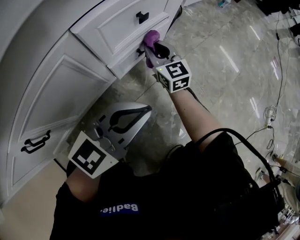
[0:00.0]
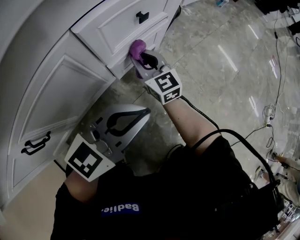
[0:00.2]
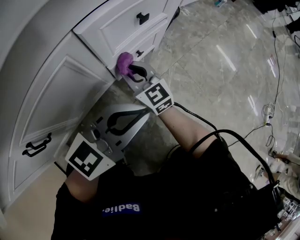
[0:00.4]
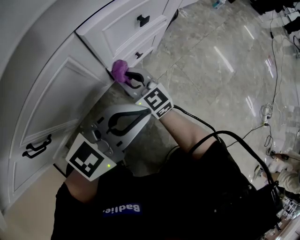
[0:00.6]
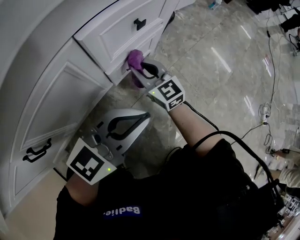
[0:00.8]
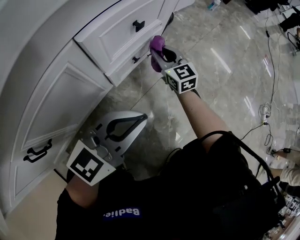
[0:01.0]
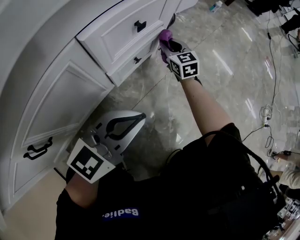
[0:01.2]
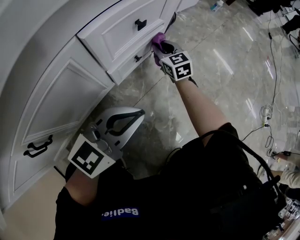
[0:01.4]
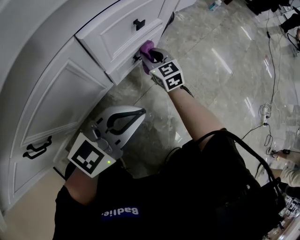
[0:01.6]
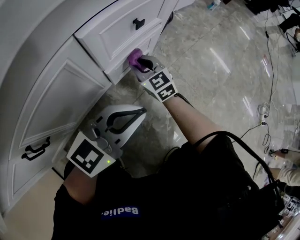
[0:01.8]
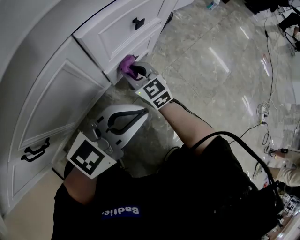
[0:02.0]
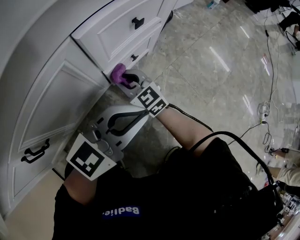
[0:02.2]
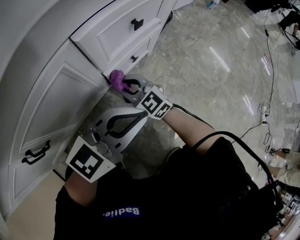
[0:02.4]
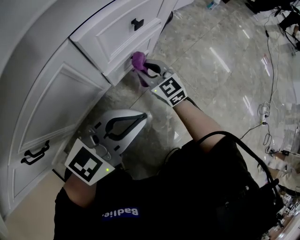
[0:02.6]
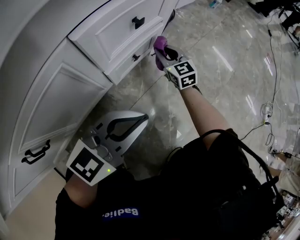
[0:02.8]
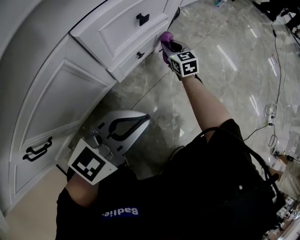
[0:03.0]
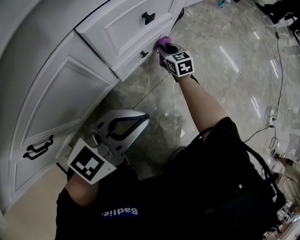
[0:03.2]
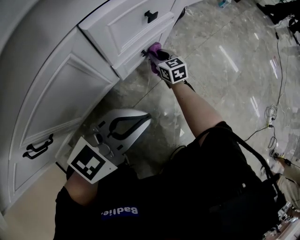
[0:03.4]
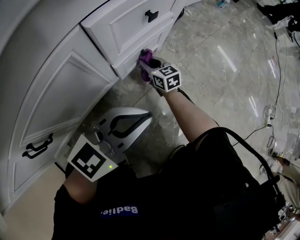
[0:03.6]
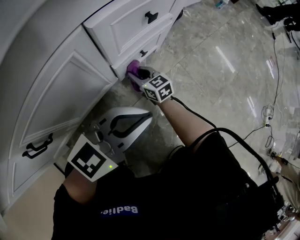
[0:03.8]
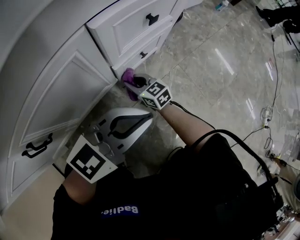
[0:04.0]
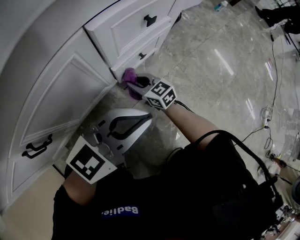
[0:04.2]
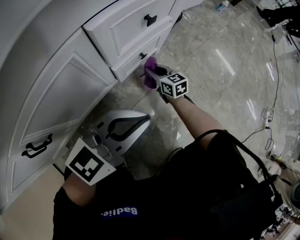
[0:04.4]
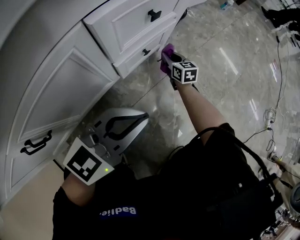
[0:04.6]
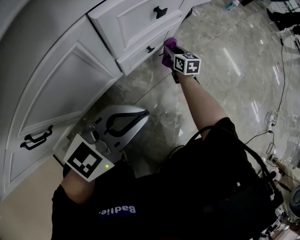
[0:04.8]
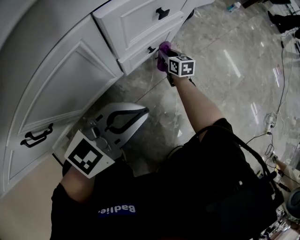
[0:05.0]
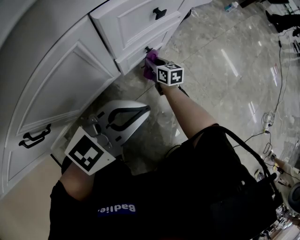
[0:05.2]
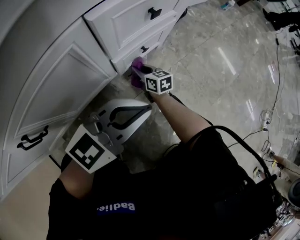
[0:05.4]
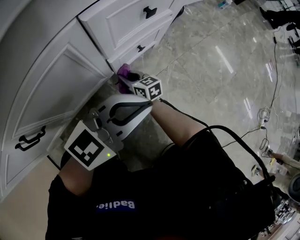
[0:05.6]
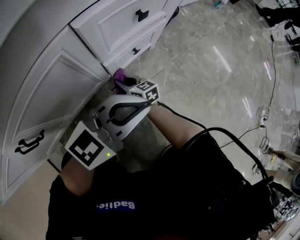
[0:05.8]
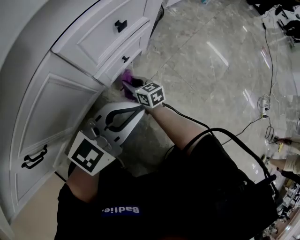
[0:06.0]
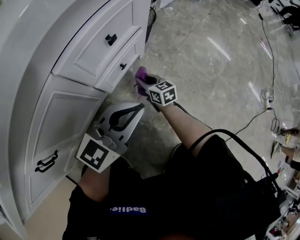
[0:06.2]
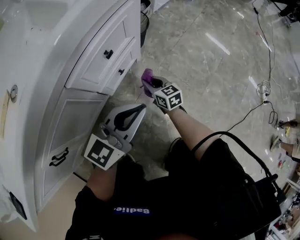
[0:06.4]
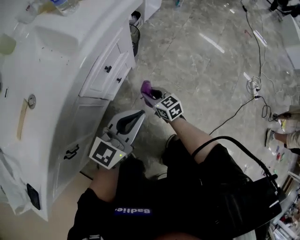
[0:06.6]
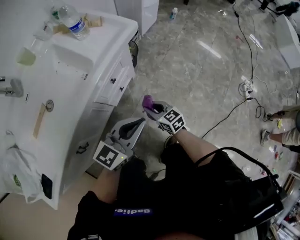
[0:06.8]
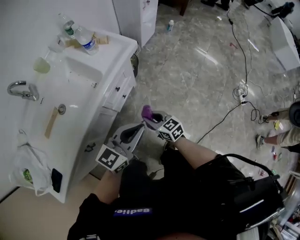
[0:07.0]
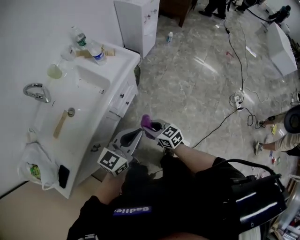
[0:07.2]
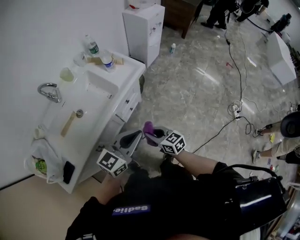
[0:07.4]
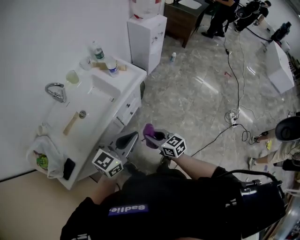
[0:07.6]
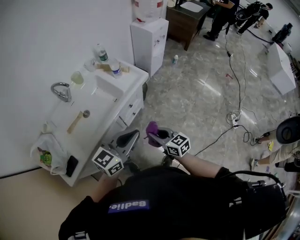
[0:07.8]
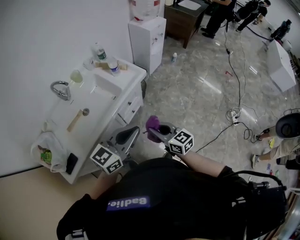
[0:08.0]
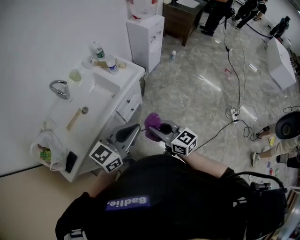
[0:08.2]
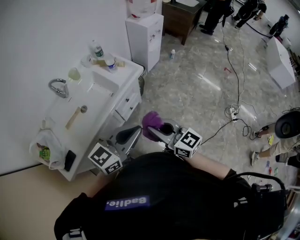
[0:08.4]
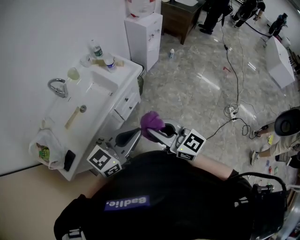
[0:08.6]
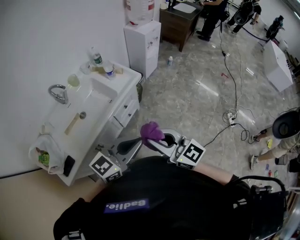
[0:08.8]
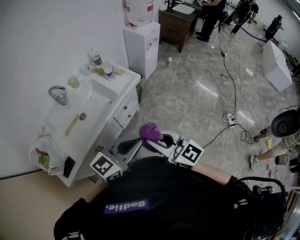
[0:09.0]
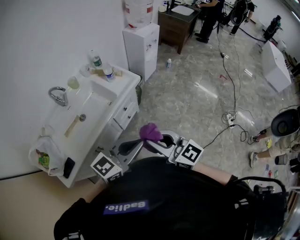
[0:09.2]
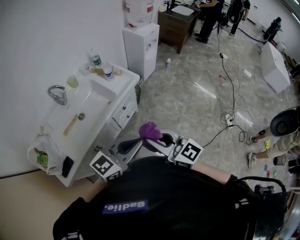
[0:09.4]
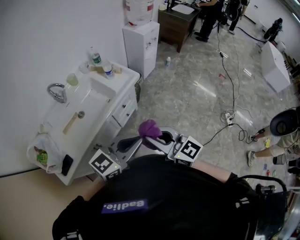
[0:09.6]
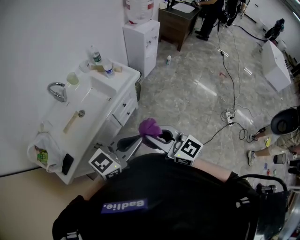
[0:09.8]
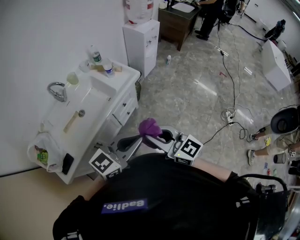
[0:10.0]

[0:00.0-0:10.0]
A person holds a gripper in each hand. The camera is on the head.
0:00.0 to 0:01.4: The right gripper travels backward and back again, roughly 10 cm each way.
0:01.4 to 0:02.8: The right gripper reaches roughly 20 cm backward, then returns.
0:02.8 to 0:04.2: The right gripper goes about 20 cm backward and to the left, and rotates some 30 degrees.
0:04.2 to 0:05.8: The right gripper moves about 20 cm forward and comes back.
0:05.8 to 0:07.2: Both grippers travel together upward, roughly 50 cm.
0:07.2 to 0:08.6: The right gripper travels upward by some 40 cm, and changes its angle by some 30 degrees. The left gripper heads upward and backward, covering approximately 25 cm.
0:08.6 to 0:10.0: There are only small adjustments of the grippers.

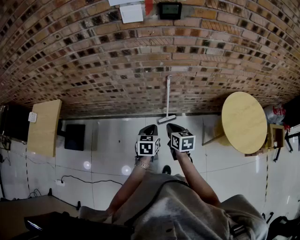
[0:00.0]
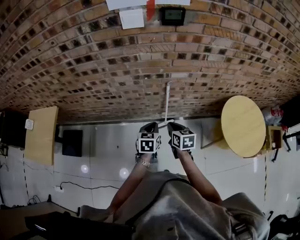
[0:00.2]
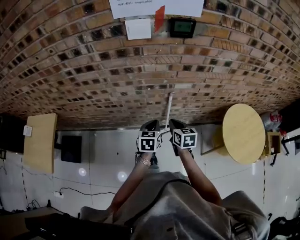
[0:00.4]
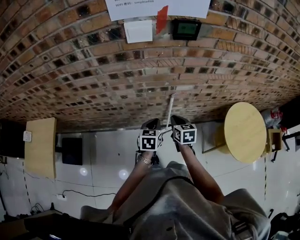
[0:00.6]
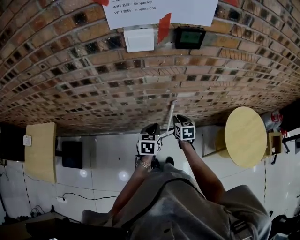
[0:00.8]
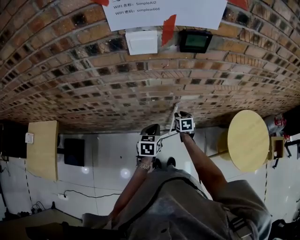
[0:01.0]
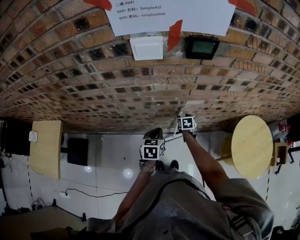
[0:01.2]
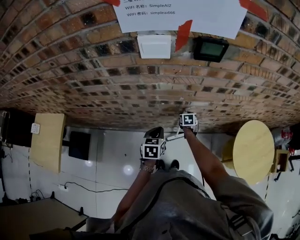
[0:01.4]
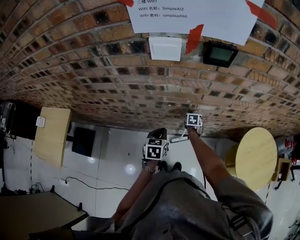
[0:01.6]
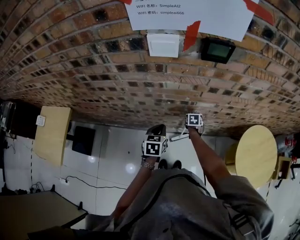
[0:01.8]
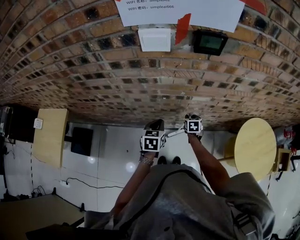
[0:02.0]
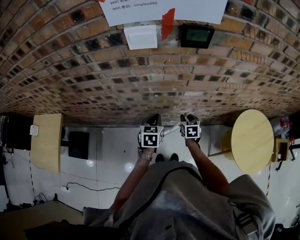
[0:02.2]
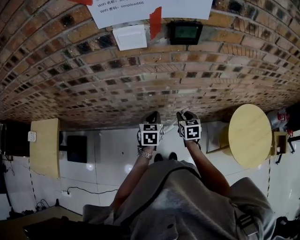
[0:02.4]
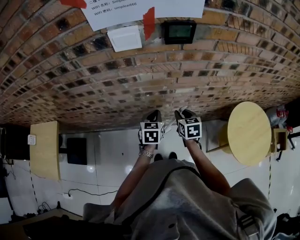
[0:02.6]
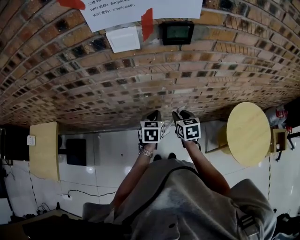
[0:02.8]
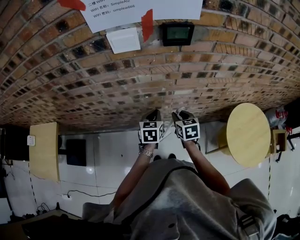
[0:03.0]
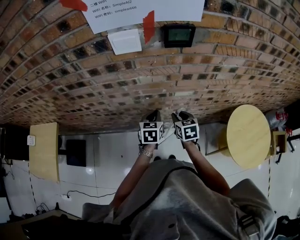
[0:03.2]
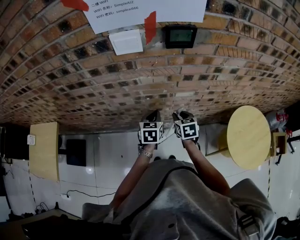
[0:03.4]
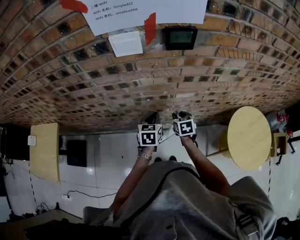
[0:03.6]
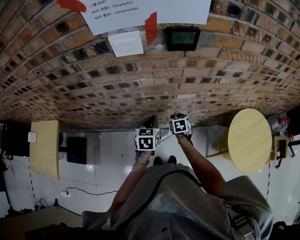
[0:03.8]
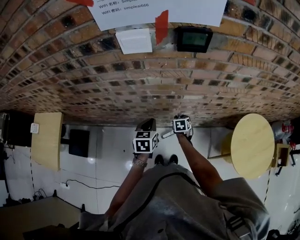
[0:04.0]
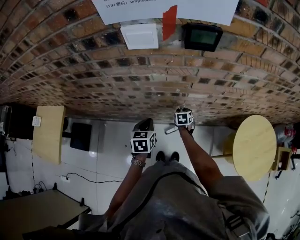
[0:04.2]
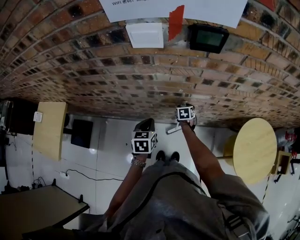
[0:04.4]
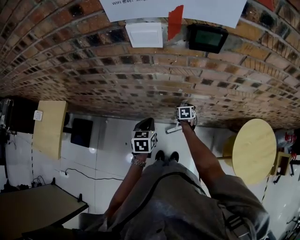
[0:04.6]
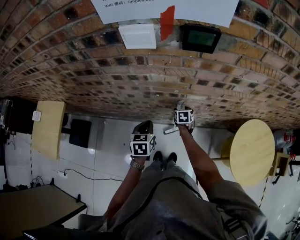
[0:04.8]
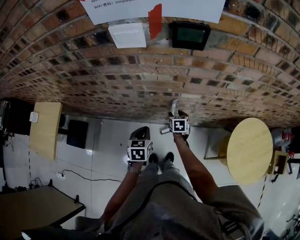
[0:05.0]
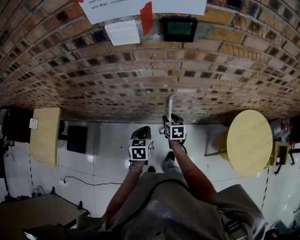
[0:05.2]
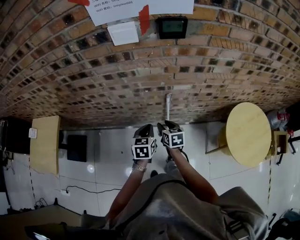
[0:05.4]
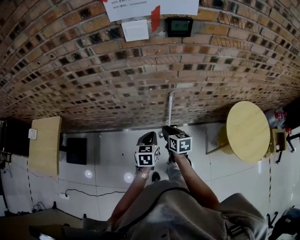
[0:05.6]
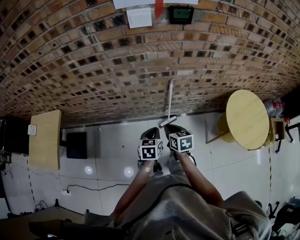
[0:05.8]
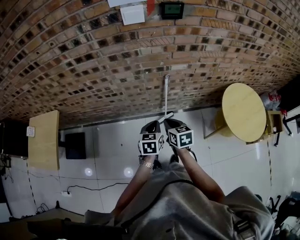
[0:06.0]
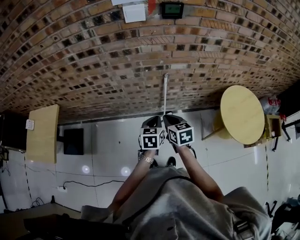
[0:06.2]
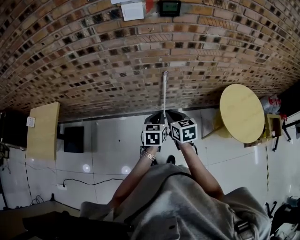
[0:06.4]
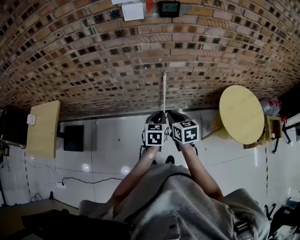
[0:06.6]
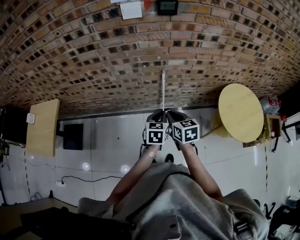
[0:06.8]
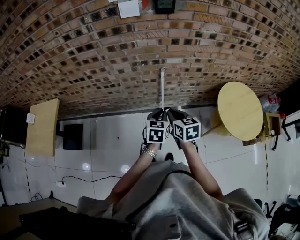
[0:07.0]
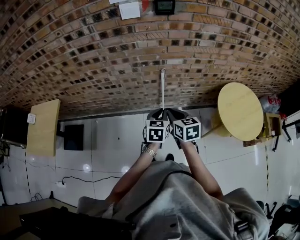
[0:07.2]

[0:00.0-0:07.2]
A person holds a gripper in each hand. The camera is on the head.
0:00.0 to 0:01.4: The right gripper is displaced forward and downward by some 40 cm, swivels about 20 degrees, and opens up, while the left gripper goes roughly 20 cm forward.
0:01.4 to 0:02.8: The right gripper goes approximately 25 cm upward and backward. Meanwhile the left gripper heads to the right, covering about 5 cm.
0:02.8 to 0:04.4: The left gripper moves to the left, some 10 cm. The right gripper heads downward and forward, covering about 25 cm.
0:04.4 to 0:05.8: The left gripper travels backward by approximately 20 cm, while the right gripper goes approximately 35 cm backward and upward, rotates roughly 20 degrees, and closes up.
0:05.8 to 0:07.2: The left gripper moves to the right, upward and backward, approximately 15 cm; the right gripper travels upward, backward and to the right by about 15 cm.

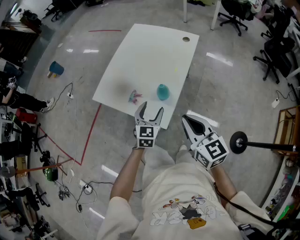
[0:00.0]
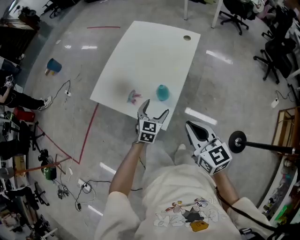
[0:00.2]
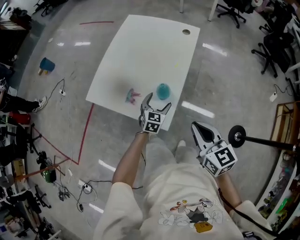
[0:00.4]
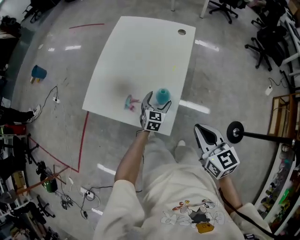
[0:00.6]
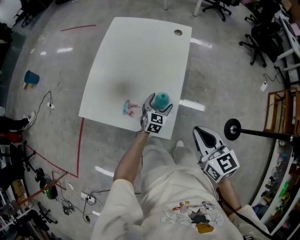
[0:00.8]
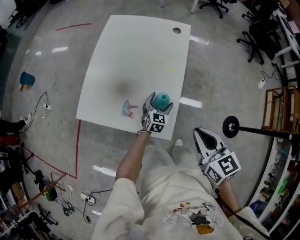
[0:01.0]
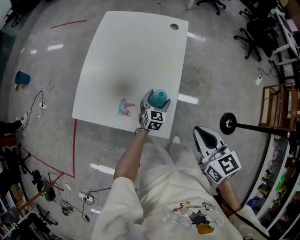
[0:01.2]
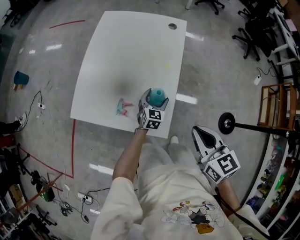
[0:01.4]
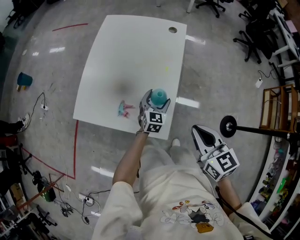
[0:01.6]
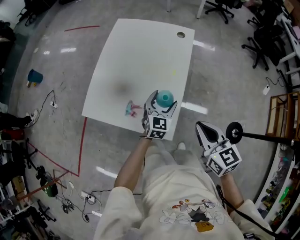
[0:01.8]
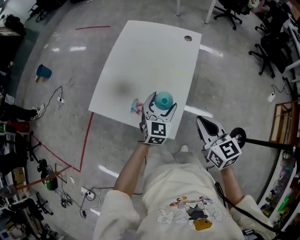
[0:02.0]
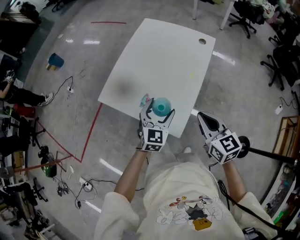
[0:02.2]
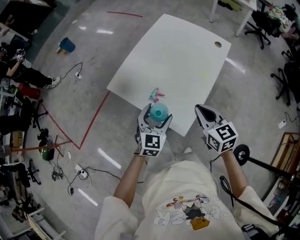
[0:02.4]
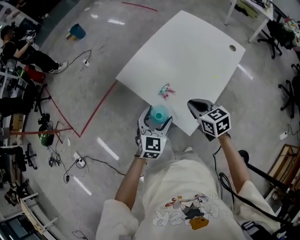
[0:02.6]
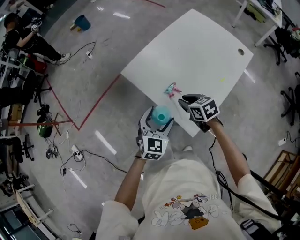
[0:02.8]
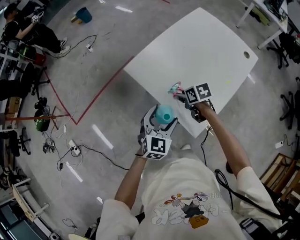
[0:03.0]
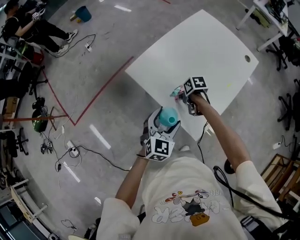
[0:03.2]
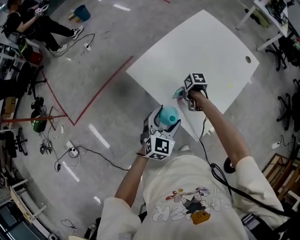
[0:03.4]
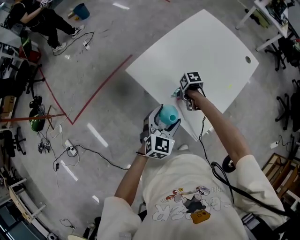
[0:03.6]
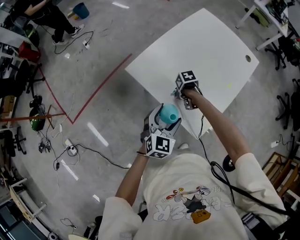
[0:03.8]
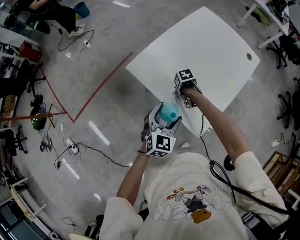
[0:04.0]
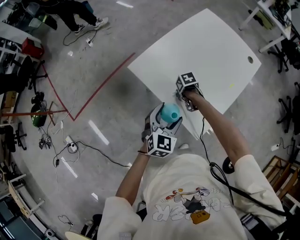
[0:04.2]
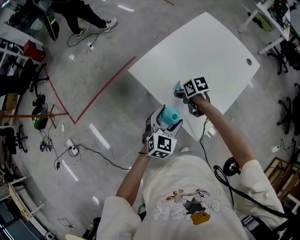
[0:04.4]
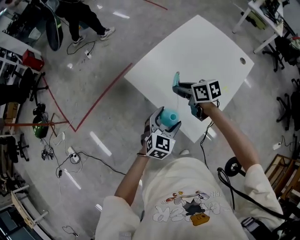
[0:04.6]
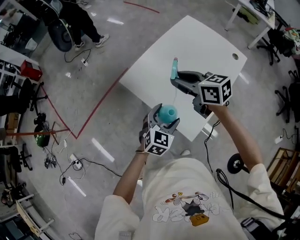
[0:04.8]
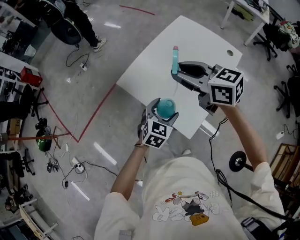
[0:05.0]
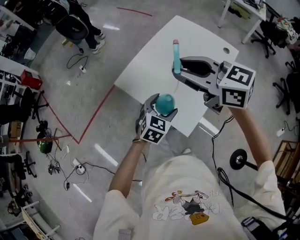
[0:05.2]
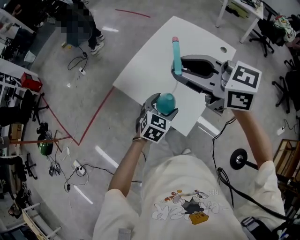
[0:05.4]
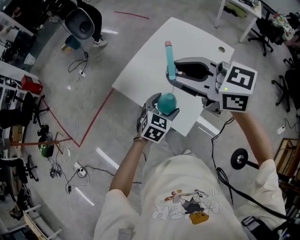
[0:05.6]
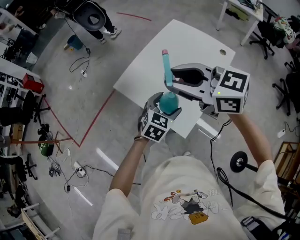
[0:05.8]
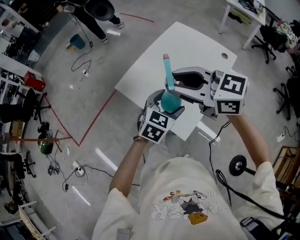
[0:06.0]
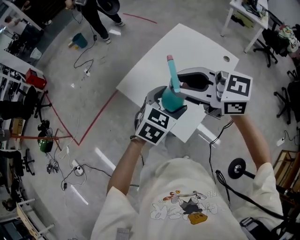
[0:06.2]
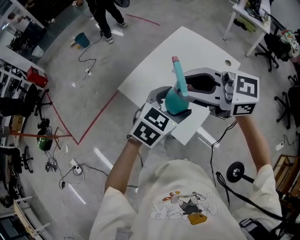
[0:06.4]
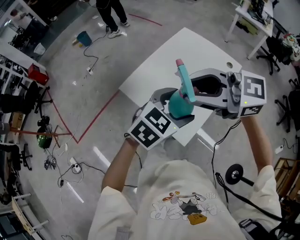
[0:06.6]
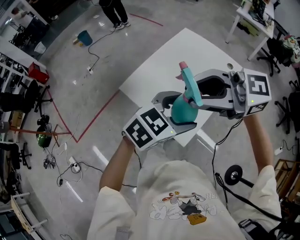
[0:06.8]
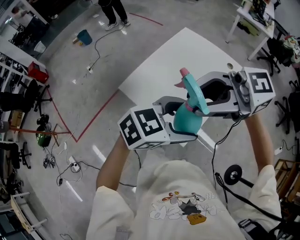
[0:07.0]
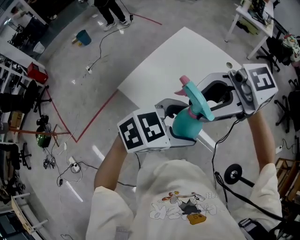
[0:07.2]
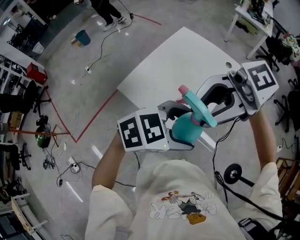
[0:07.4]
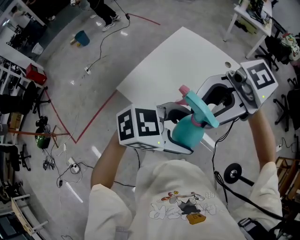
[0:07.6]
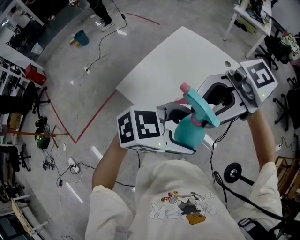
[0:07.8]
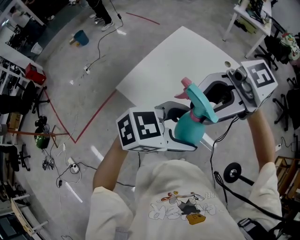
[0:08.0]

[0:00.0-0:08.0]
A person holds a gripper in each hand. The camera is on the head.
0:00.0 to 0:01.6: The right gripper travels forward, downward and to the left by approximately 15 cm; the left gripper heads forward and downward, covering approximately 25 cm.
0:01.6 to 0:03.2: The right gripper changes place by some 40 cm, tilts its fingers roughly 30 degrees downward, and opens up, while the left gripper moves approximately 30 cm, and rotates approximately 20 degrees.
0:03.2 to 0:04.8: The right gripper is displaced upward by approximately 30 cm, and tips its fingers upward by about 40 degrees.
0:04.8 to 0:06.4: The two grippers go approximately 20 cm upward. The right gripper rotates approximately 40 degrees.
0:06.4 to 0:08.0: The right gripper changes place by about 10 cm, and changes its angle by approximately 30 degrees; the left gripper moves roughly 10 cm, and turns by approximately 40 degrees.
